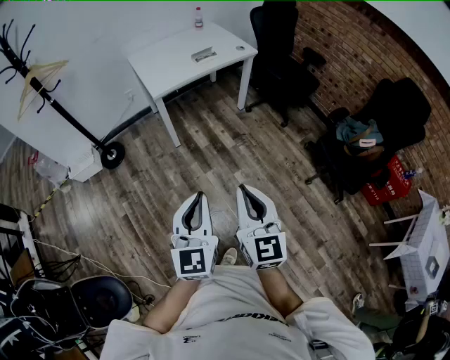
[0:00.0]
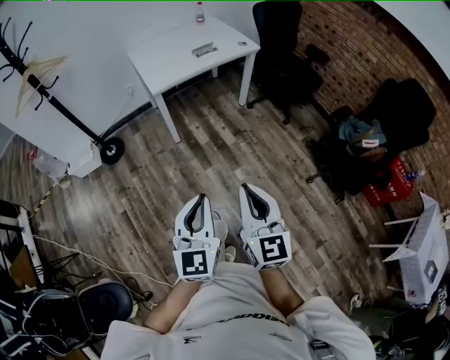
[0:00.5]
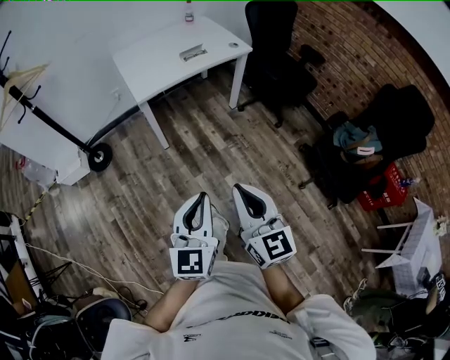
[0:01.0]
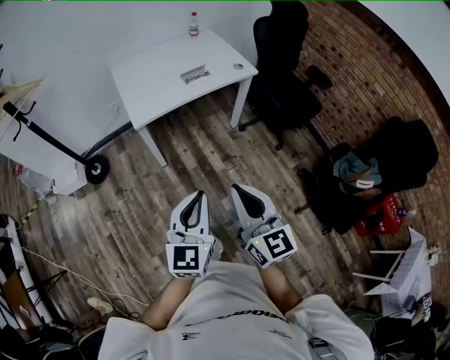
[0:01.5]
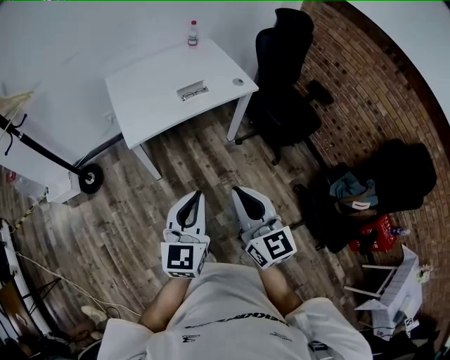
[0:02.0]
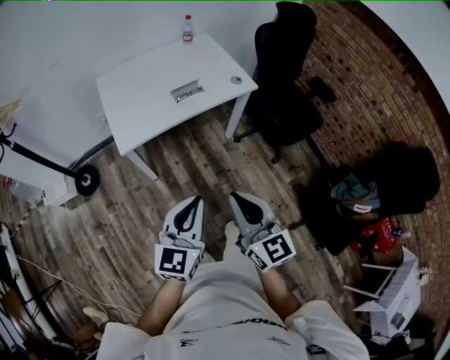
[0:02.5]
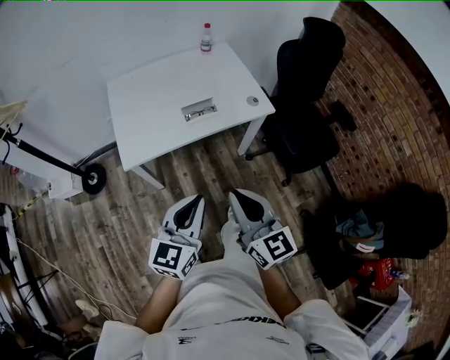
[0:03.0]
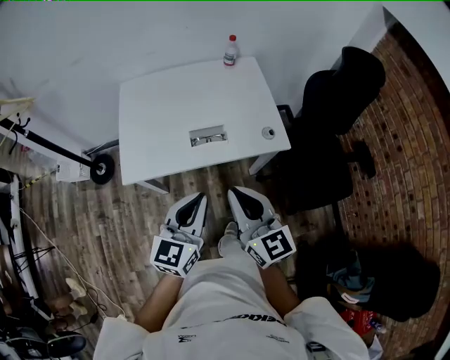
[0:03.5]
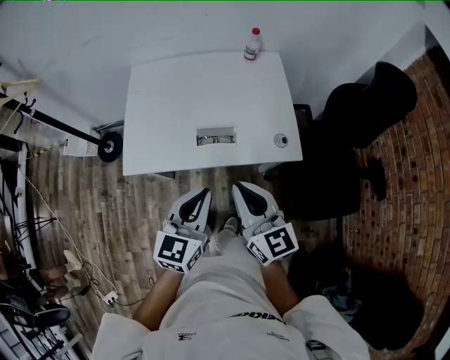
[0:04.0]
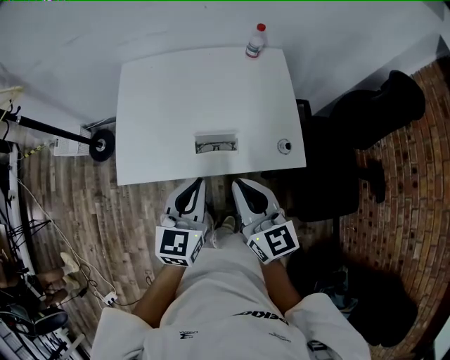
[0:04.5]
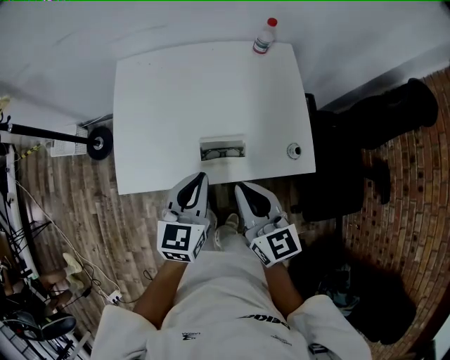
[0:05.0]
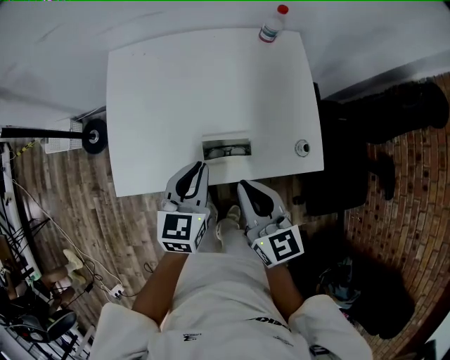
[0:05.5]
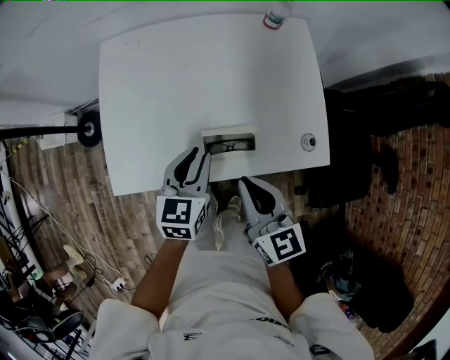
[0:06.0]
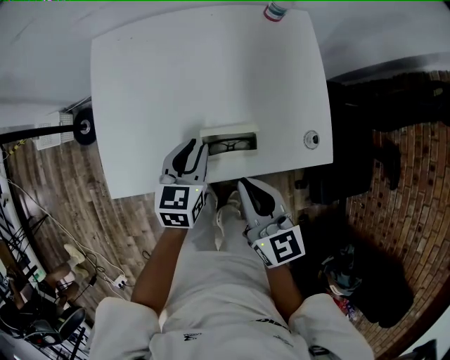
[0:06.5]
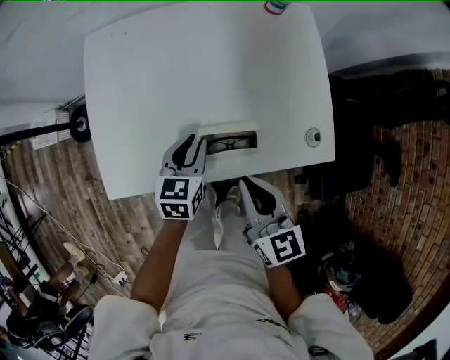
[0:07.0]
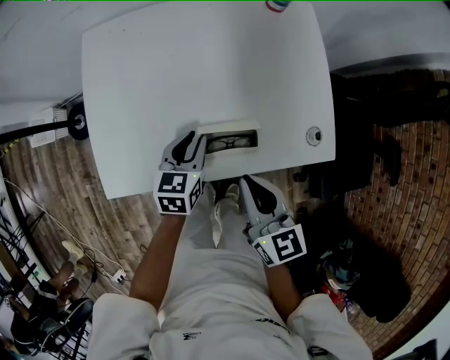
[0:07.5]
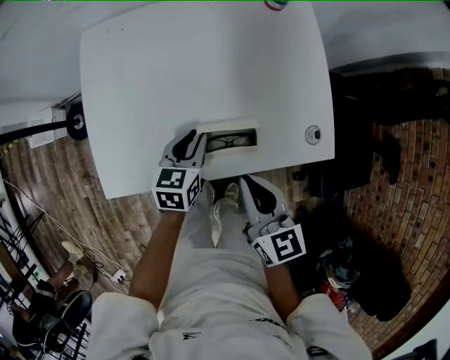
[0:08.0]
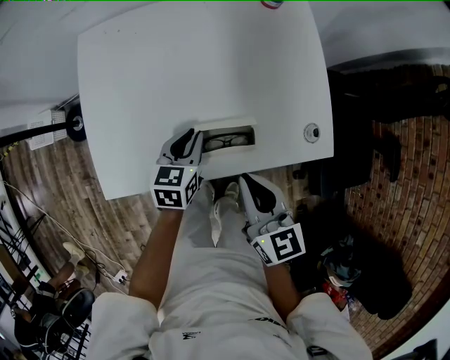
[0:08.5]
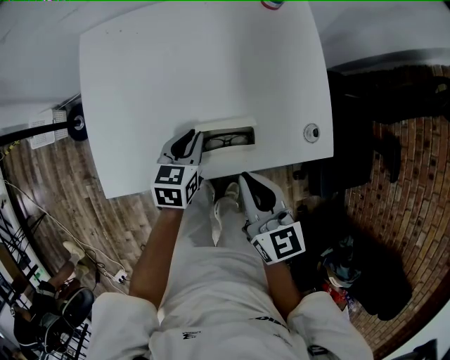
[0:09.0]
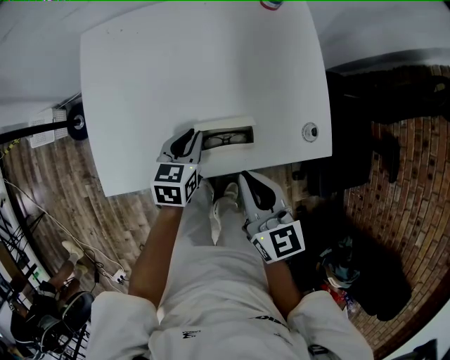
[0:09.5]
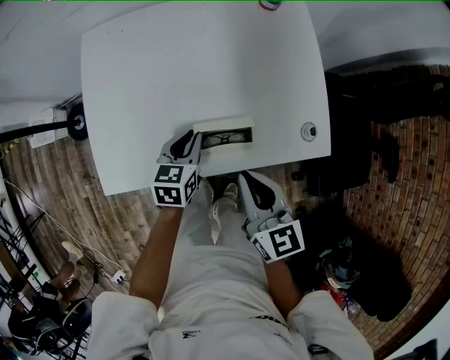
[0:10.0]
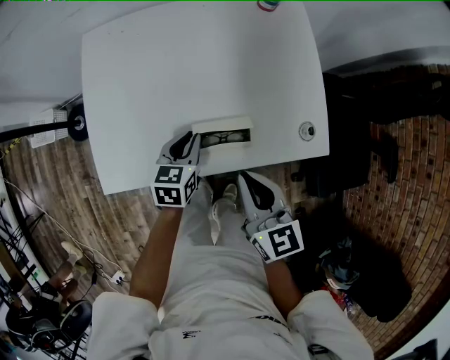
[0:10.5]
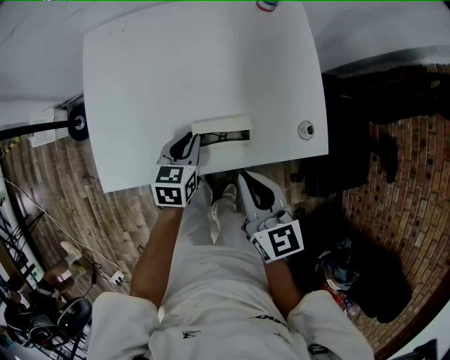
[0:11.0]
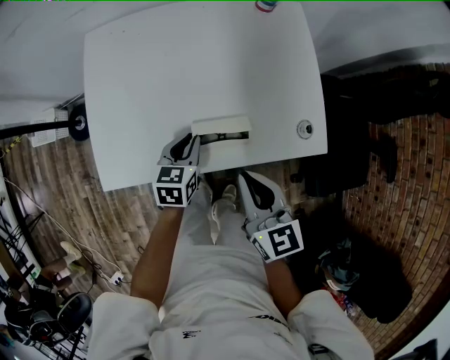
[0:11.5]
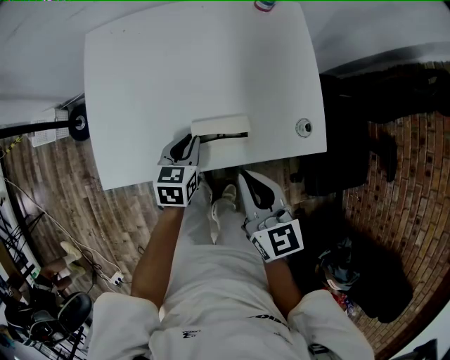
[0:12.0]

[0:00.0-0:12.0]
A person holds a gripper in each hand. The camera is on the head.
0:00.0 to 0:02.0: Both grippers are carried forward, some 40 cm.
0:02.0 to 0:04.0: The two grippers travel together, forward, some 50 cm. The right gripper changes its angle by about 30 degrees.
0:04.0 to 0:06.0: Both grippers travel together forward and downward, some 25 cm. The left gripper opens up.
0:06.0 to 0:08.0: The left gripper heads downward, covering about 10 cm.
0:08.0 to 0:10.0: Both grippers stay about where they are.
0:10.0 to 0:12.0: The grippers stay close to where they were, moving slightly.

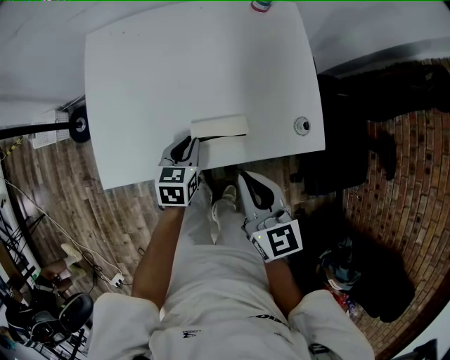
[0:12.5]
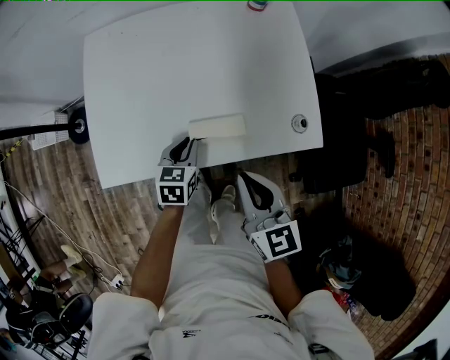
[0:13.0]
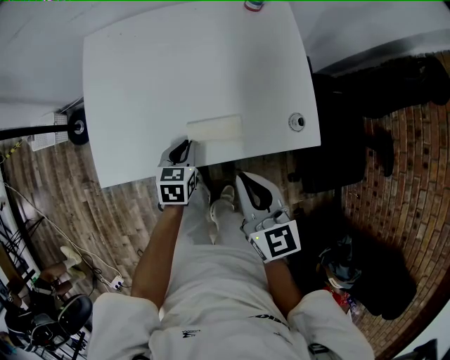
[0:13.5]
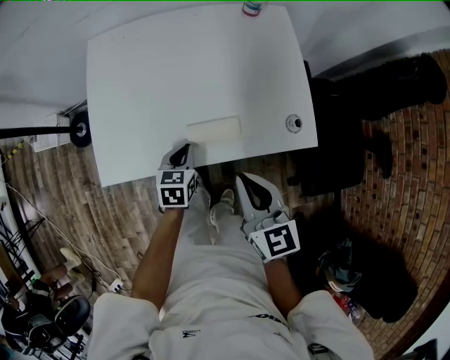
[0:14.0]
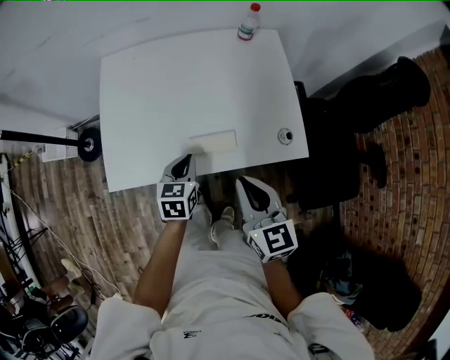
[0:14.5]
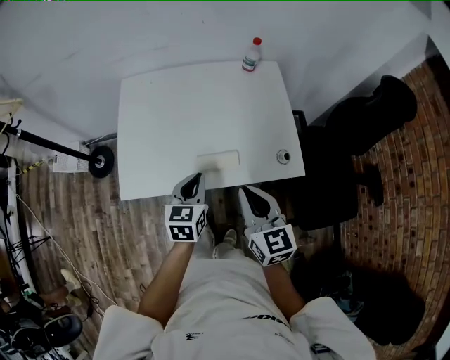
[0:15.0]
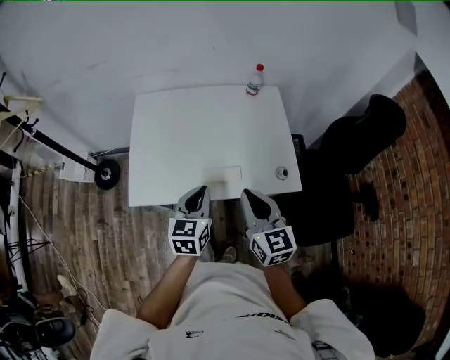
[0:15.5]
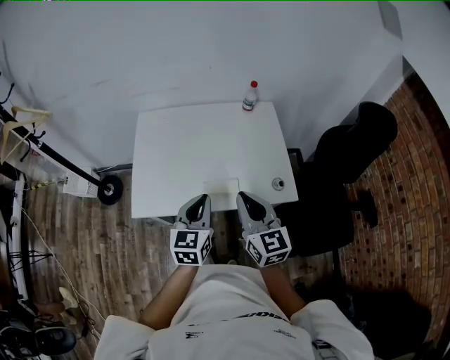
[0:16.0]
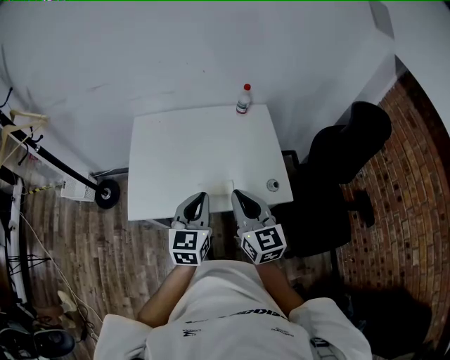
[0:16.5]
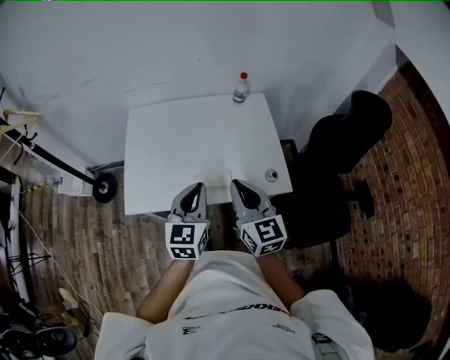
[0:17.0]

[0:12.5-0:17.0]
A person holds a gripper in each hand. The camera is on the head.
0:12.5 to 0:14.5: The grippers both shift upward by approximately 5 cm.
0:14.5 to 0:17.0: The right gripper moves upward, approximately 15 cm; the left gripper moves upward, about 25 cm, and rotates roughly 30 degrees.

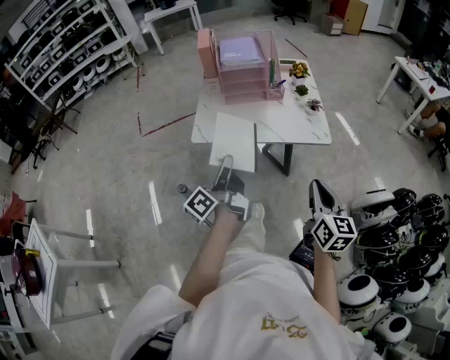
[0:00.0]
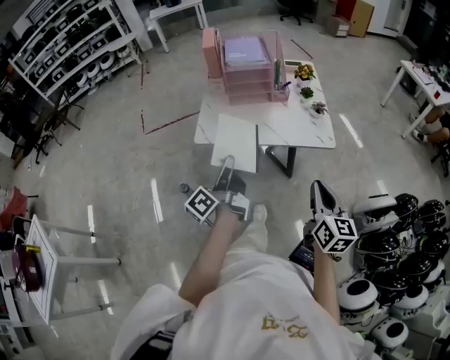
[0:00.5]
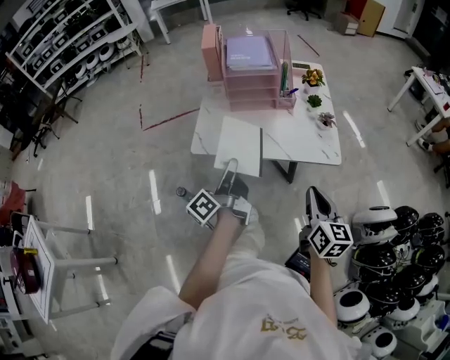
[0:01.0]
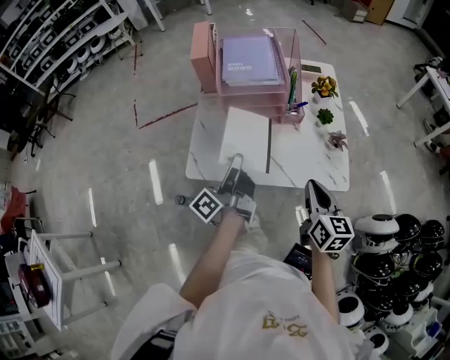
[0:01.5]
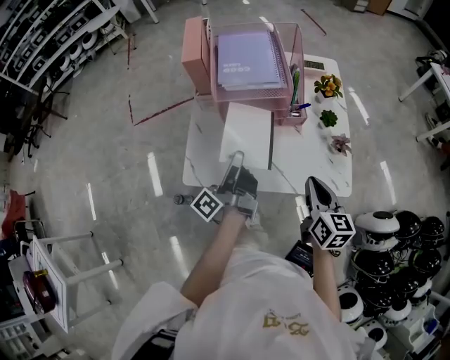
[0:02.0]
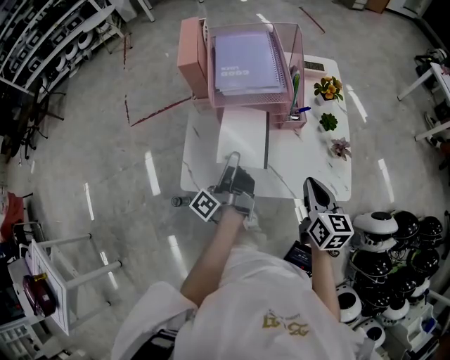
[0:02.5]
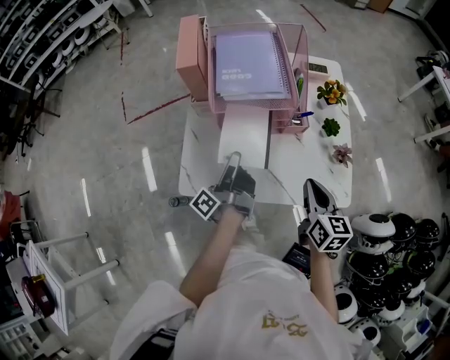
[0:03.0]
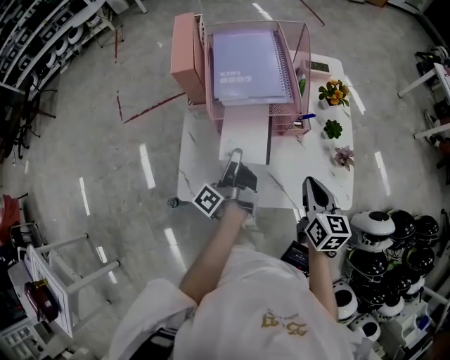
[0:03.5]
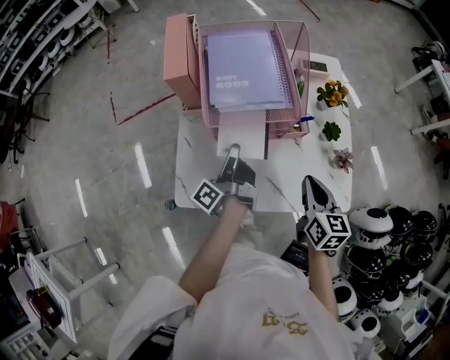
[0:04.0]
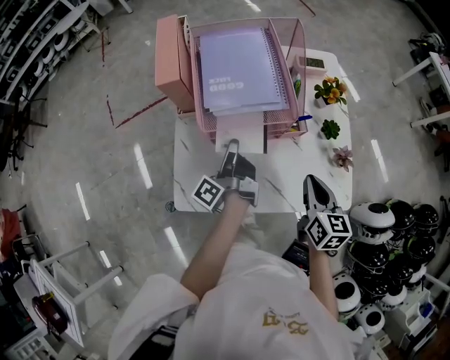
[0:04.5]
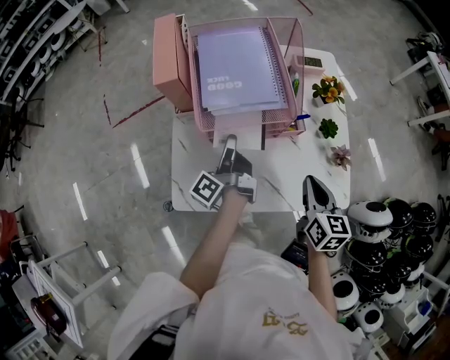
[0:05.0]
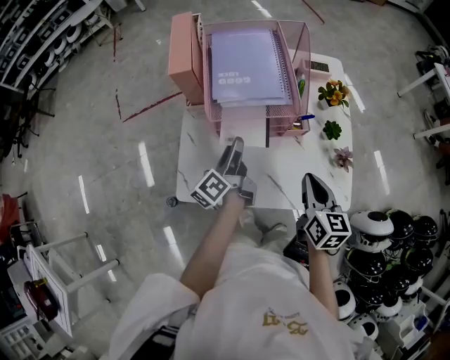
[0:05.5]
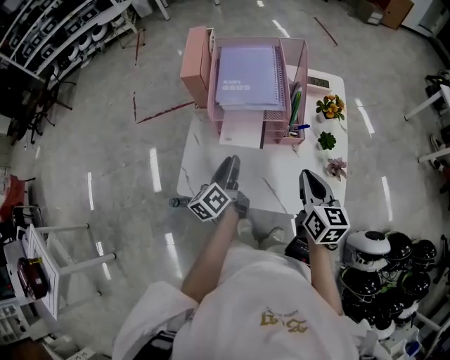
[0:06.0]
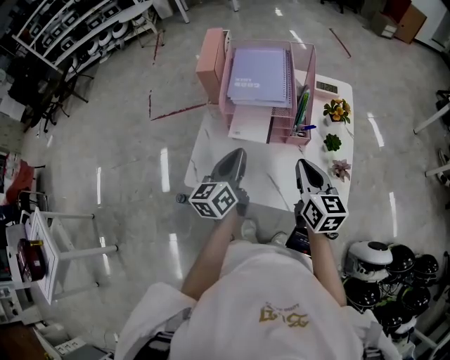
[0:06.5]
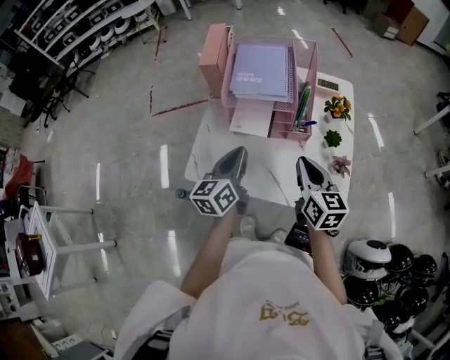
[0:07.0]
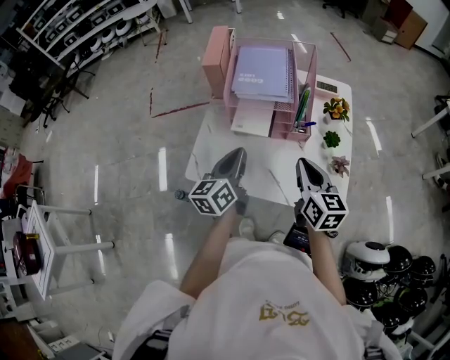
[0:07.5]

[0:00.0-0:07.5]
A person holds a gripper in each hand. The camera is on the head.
0:00.0 to 0:02.0: The right gripper changes place by about 35 cm.
0:02.0 to 0:04.0: The right gripper ends up some 10 cm from where it was.
0:05.5 to 0:07.5: The right gripper shifts some 5 cm upward.

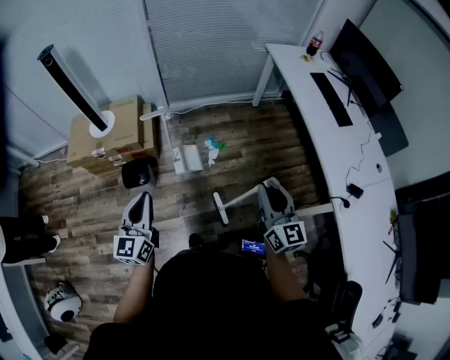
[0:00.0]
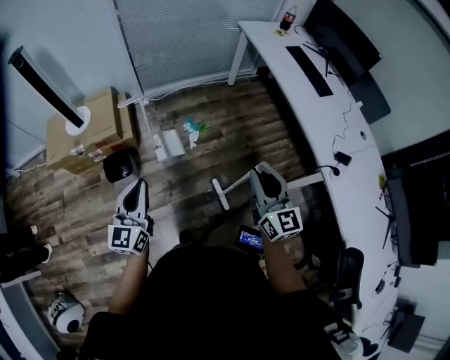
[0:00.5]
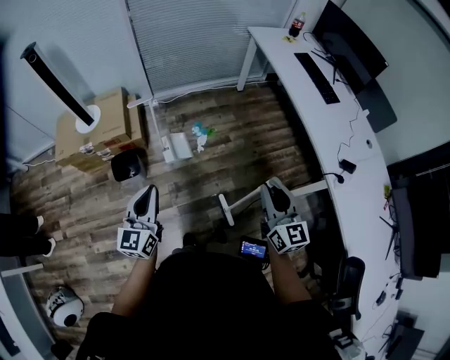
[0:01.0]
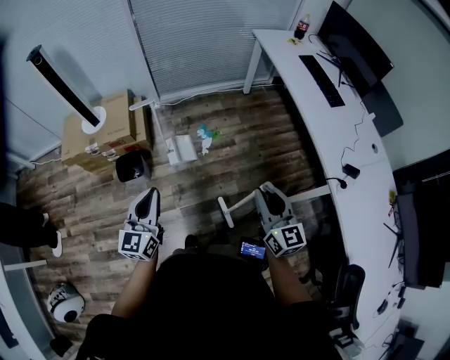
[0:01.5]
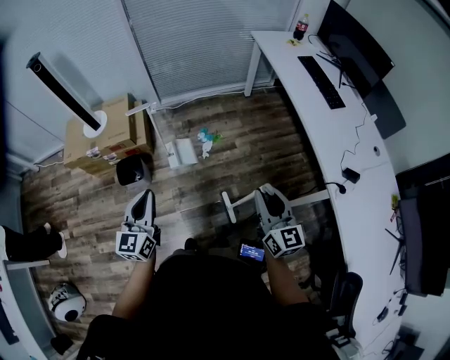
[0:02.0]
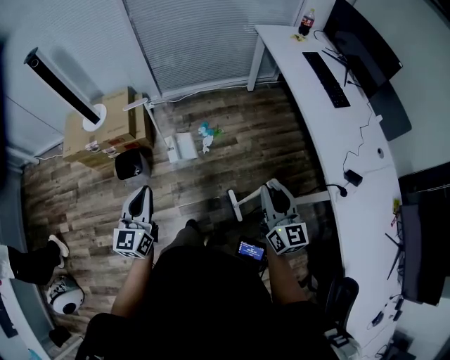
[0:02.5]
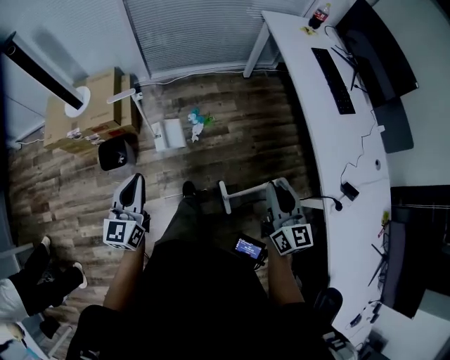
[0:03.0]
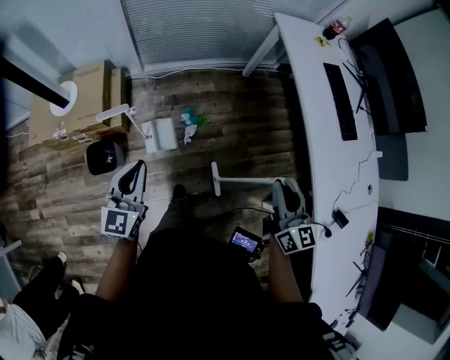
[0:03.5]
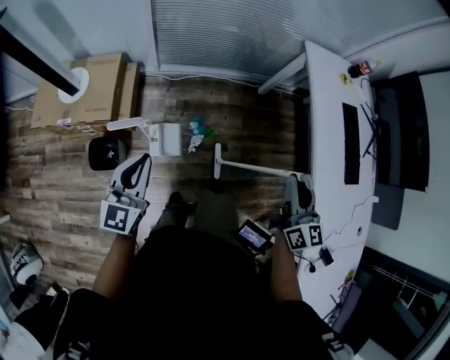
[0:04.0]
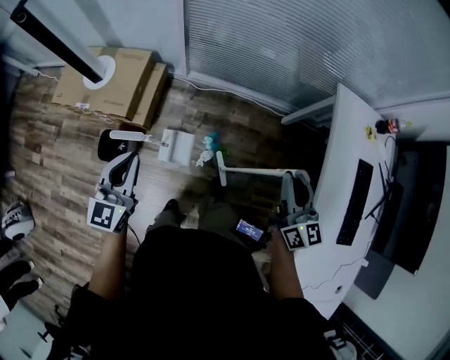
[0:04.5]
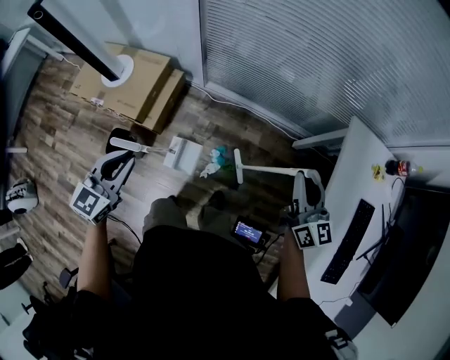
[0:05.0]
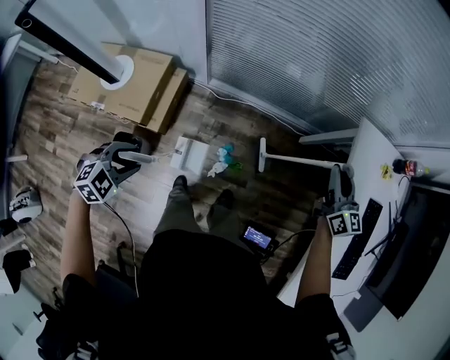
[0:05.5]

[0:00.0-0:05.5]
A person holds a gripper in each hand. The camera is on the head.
0:00.0 to 0:02.0: Both grippers move to the right, roughly 5 cm.
0:02.0 to 0:03.5: Both grippers travel together forward, roughly 25 cm.
0:03.5 to 0:05.5: The right gripper shifts some 50 cm forward, and rotates approximately 20 degrees. Meanwhile the left gripper goes about 20 cm forward, angles its fingers downward, by approximately 50 degrees, and opens up.
